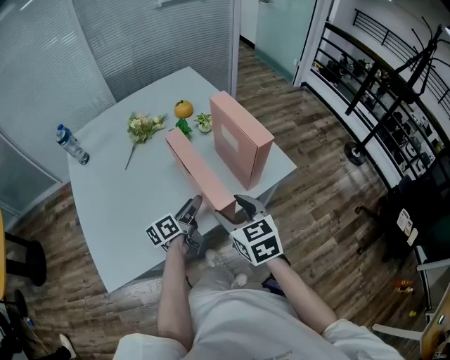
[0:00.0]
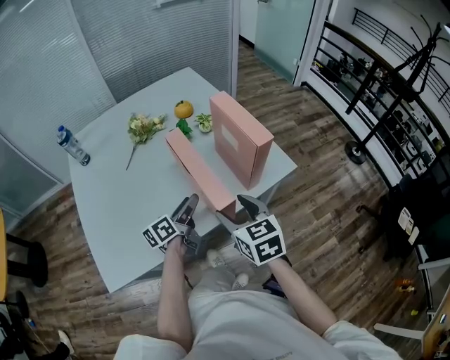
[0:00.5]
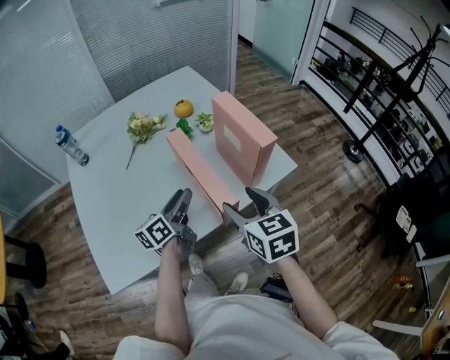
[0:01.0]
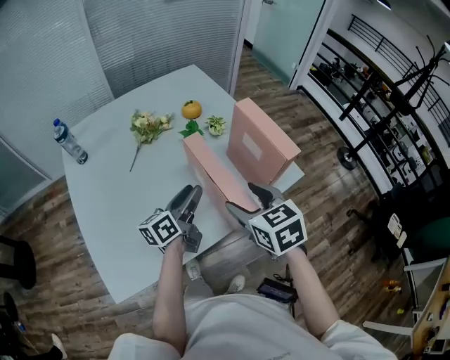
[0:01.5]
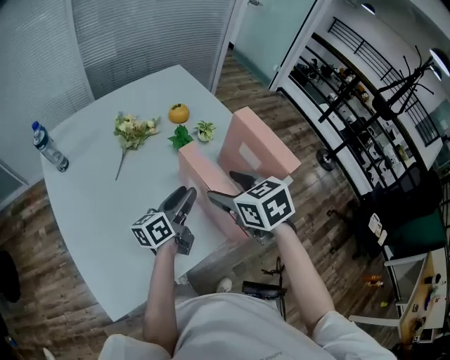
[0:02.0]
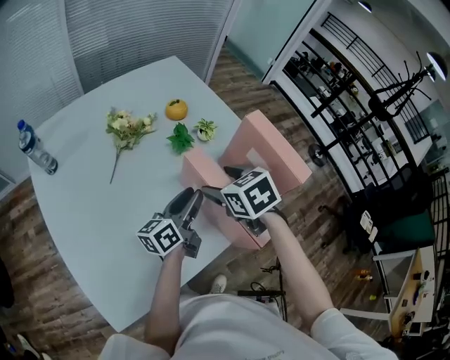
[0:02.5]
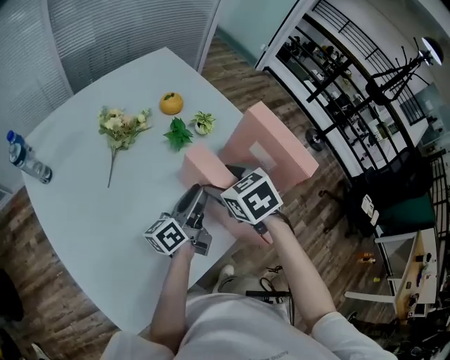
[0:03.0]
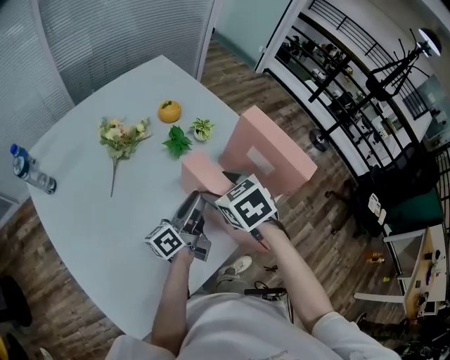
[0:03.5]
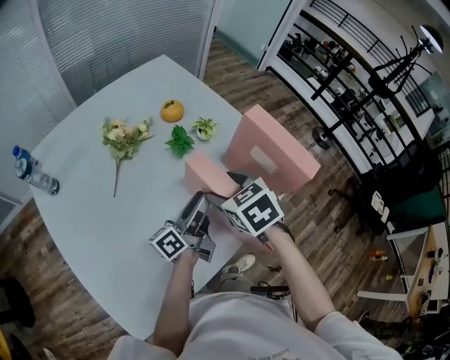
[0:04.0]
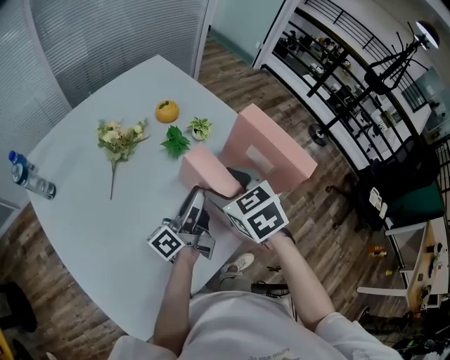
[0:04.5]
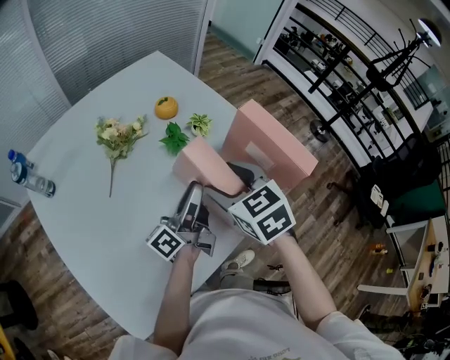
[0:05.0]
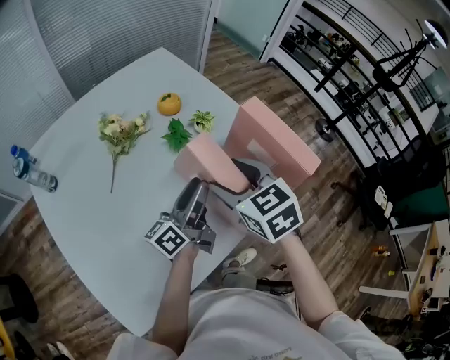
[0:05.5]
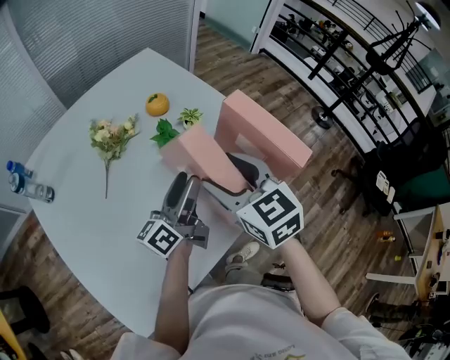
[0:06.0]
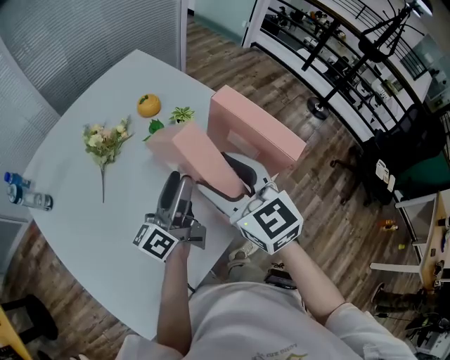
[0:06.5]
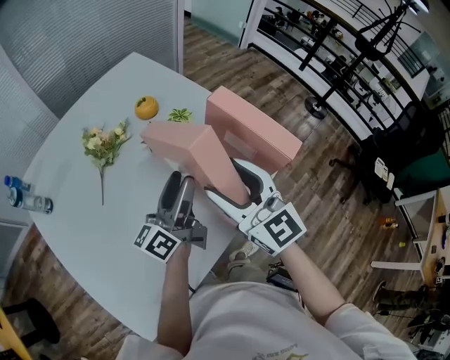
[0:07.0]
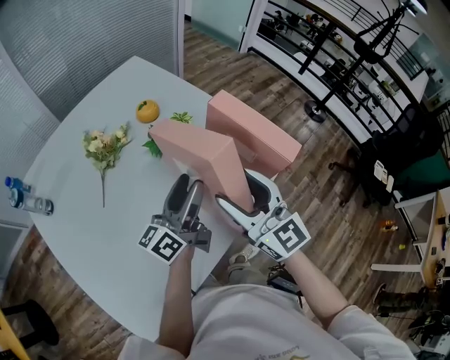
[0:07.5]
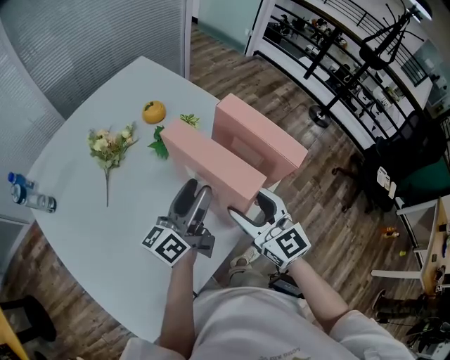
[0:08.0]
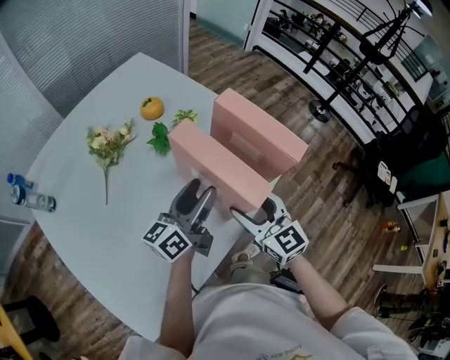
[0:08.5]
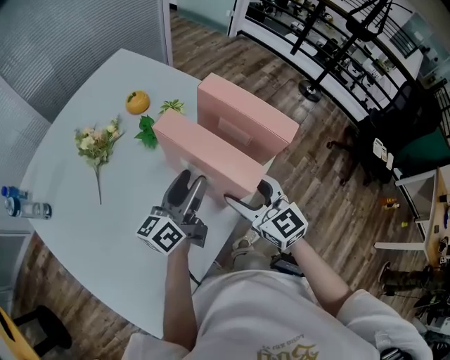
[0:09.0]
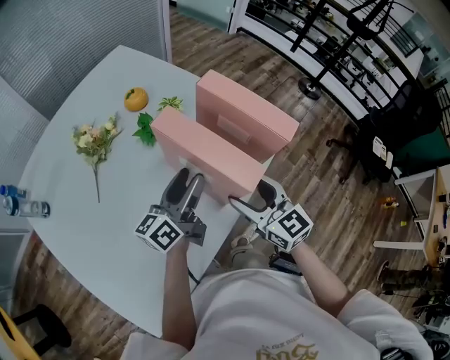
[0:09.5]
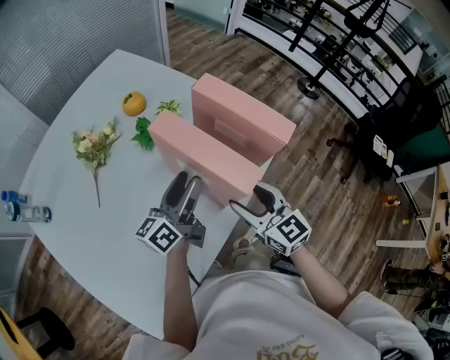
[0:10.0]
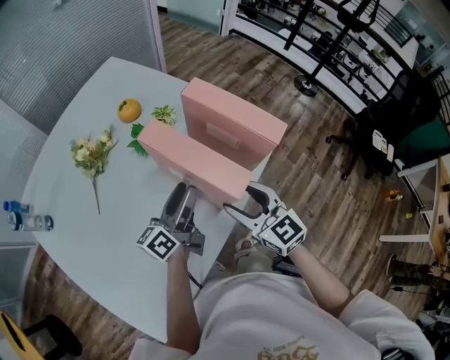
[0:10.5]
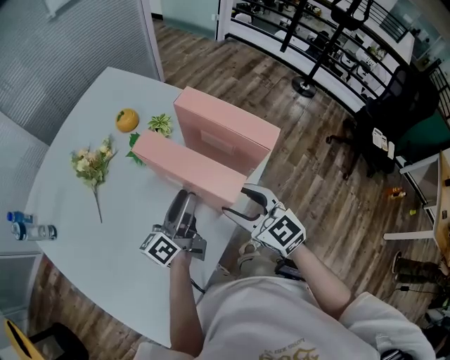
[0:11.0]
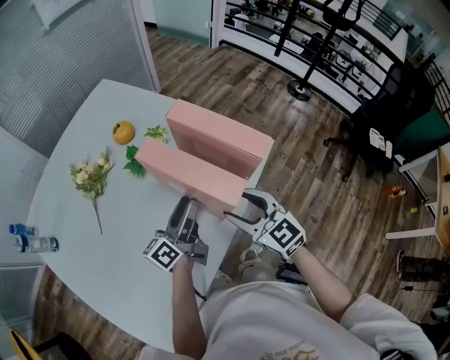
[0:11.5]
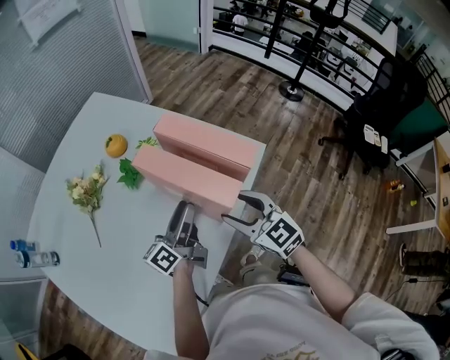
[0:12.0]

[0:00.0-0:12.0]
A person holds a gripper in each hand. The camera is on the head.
0:00.0 to 0:02.0: The right gripper goes about 15 cm forward and to the left. The left gripper goes about 10 cm forward, upward and to the left.
0:02.0 to 0:04.0: The right gripper goes some 10 cm forward and downward. Meanwhile the left gripper turns by about 20 degrees.
0:04.0 to 0:06.0: The right gripper heads upward, covering about 10 cm, and changes its angle by some 30 degrees, while the left gripper changes place by some 5 cm.
0:06.0 to 0:08.0: The right gripper heads to the right, backward and downward, covering some 10 cm.
0:08.0 to 0:10.0: The right gripper shifts approximately 5 cm downward.
0:10.0 to 0:12.0: The left gripper ends up roughly 5 cm from where it was.

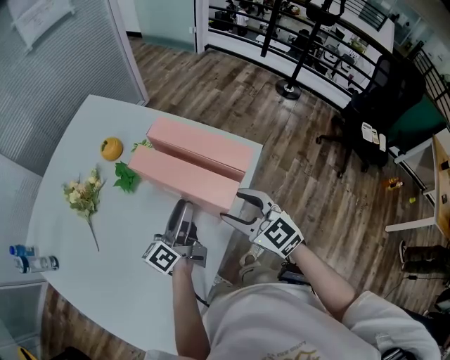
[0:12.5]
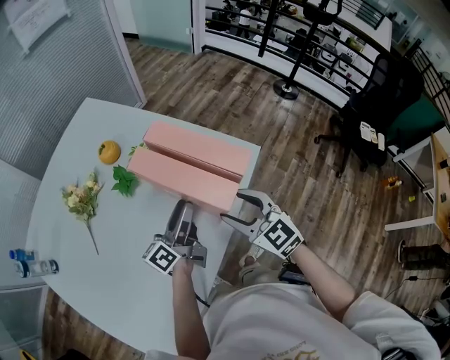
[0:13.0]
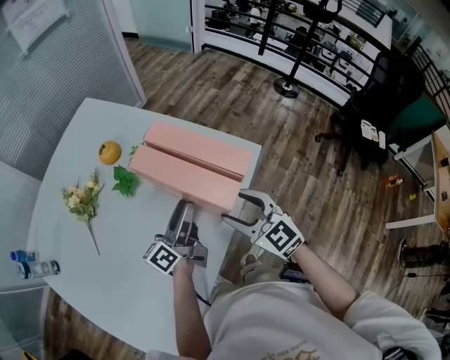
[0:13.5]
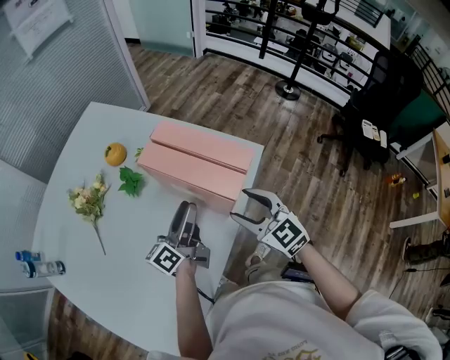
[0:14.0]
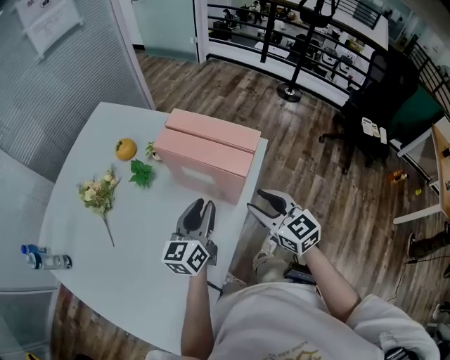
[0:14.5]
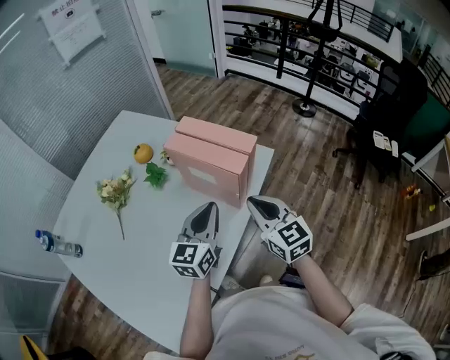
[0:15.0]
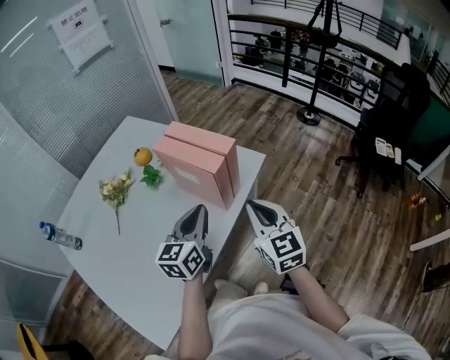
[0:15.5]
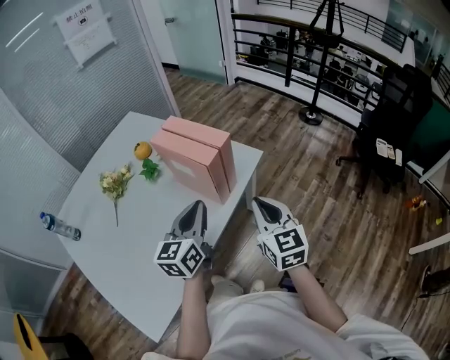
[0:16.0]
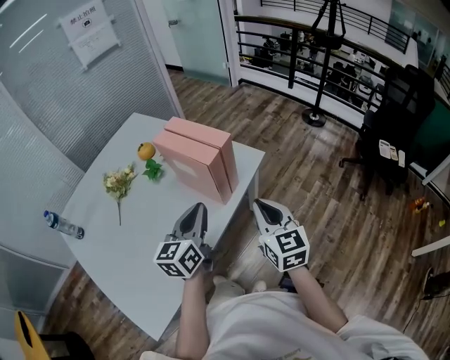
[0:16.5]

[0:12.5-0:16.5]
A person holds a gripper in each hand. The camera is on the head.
0:12.5 to 0:14.5: The right gripper ends up about 5 cm from where it was; the left gripper goes roughly 5 cm backward, and changes its angle by some 30 degrees.
0:14.5 to 0:16.5: The right gripper goes roughly 15 cm to the right, backward and upward, and closes its fingers. The left gripper shifts some 15 cm backward, upward and to the right, and closes its fingers.

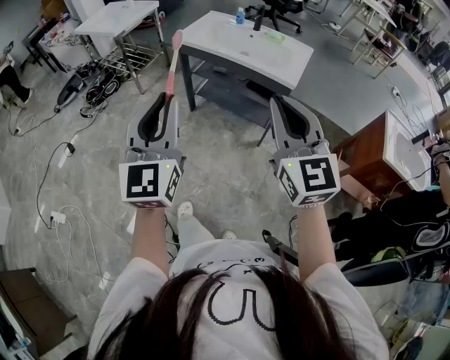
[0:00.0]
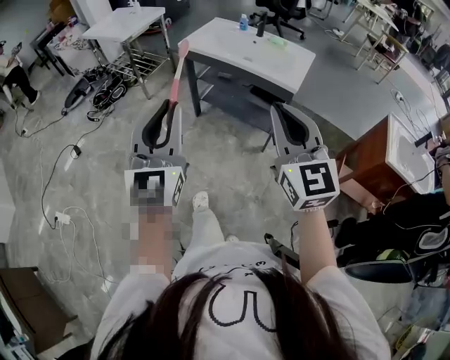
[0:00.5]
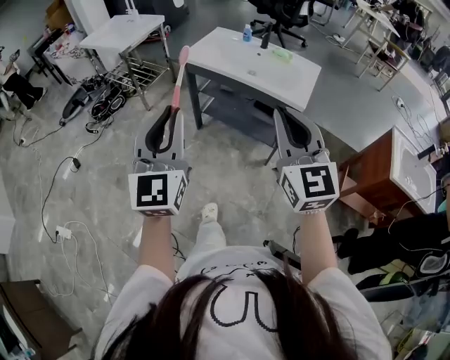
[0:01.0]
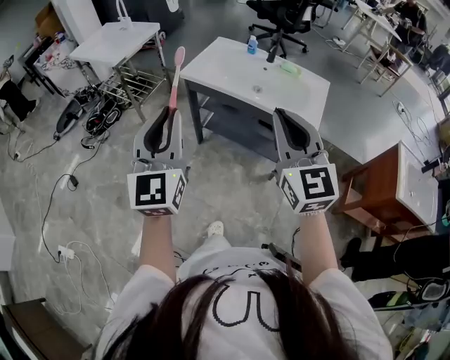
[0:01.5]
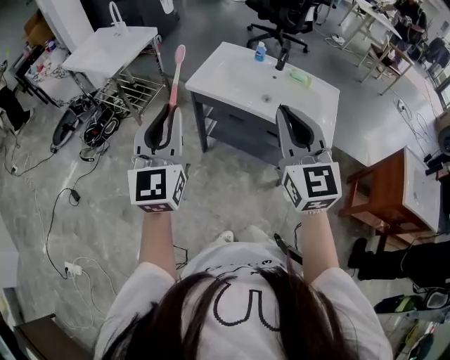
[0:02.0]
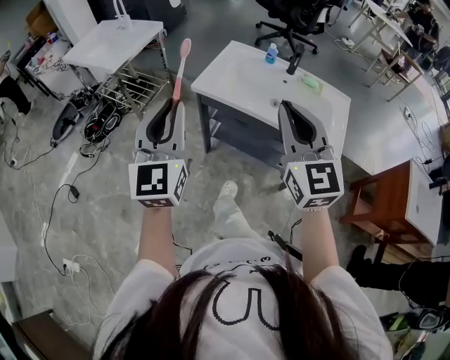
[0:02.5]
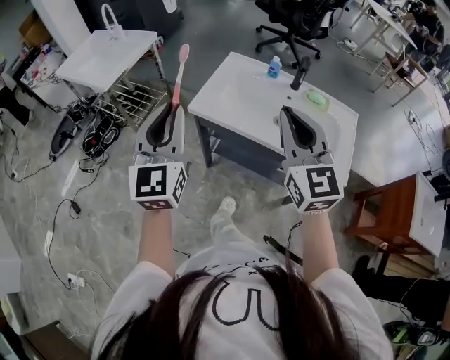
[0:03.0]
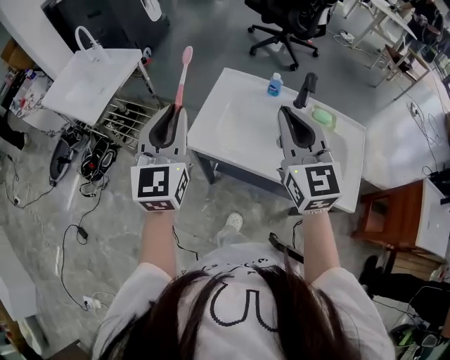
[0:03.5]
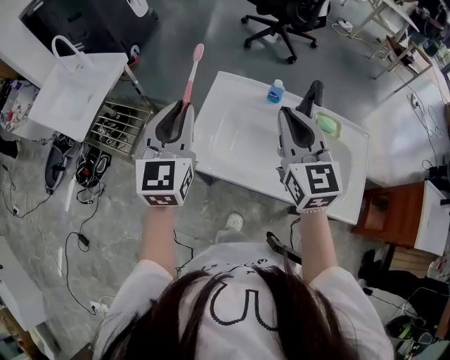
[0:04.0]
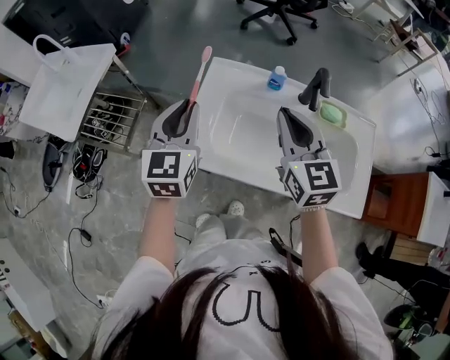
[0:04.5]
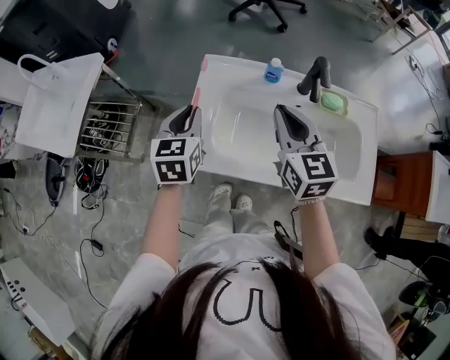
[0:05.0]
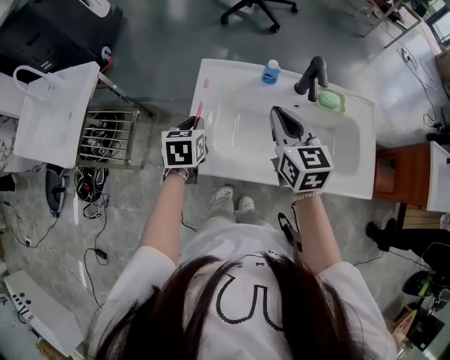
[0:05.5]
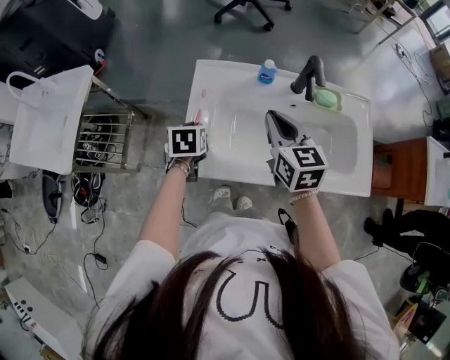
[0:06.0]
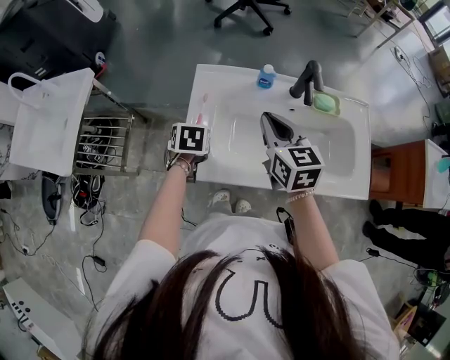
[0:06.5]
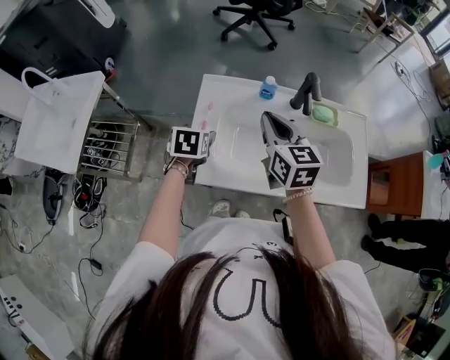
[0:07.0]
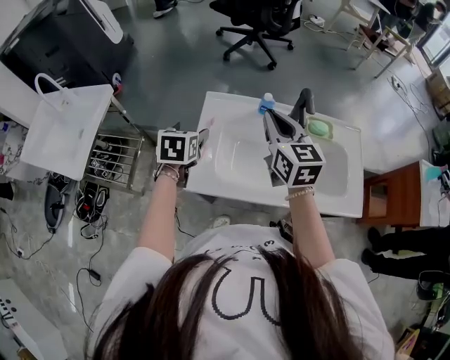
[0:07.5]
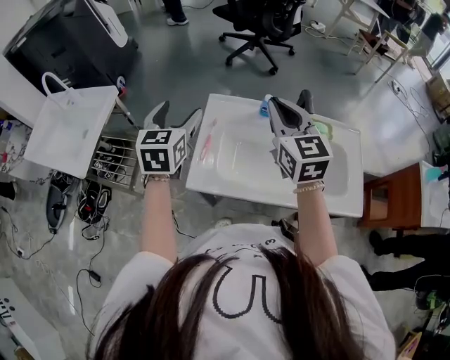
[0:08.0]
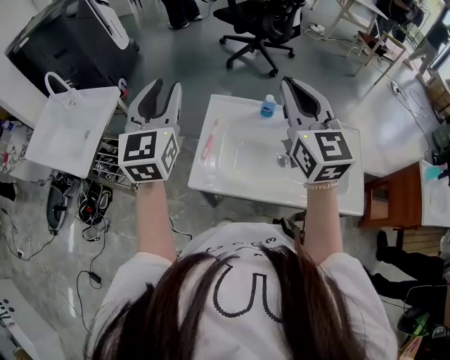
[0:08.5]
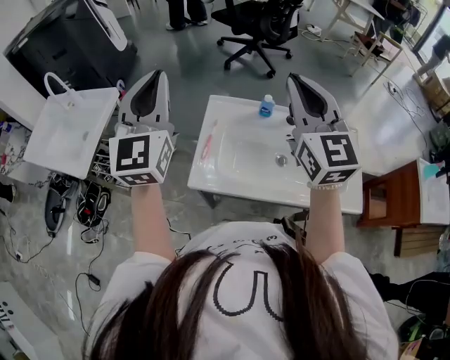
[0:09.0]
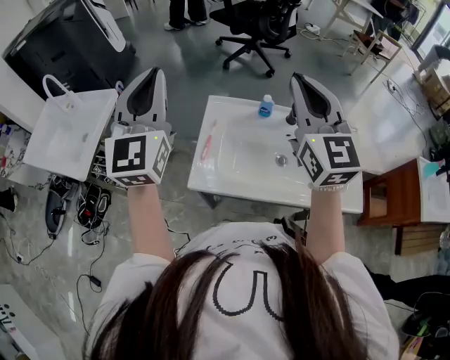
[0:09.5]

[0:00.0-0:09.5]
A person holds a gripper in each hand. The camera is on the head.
0:00.0 to 0:02.0: Both grippers travel together forward, some 30 cm.
0:02.0 to 0:04.0: Both grippers are carried forward, roughly 50 cm.
0:04.0 to 0:05.5: The left gripper heads downward, covering about 25 cm, and angles its fingers downward, by some 40 degrees; the right gripper is displaced downward and forward by roughly 15 cm, and turns by some 20 degrees.
0:05.5 to 0:07.5: The grippers both shift upward by about 5 cm. The left gripper opens.
0:07.5 to 0:09.5: The right gripper travels upward by approximately 20 cm, and turns by about 30 degrees; the left gripper is displaced upward by some 30 cm, tips its fingers upward by approximately 60 degrees, and closes up.

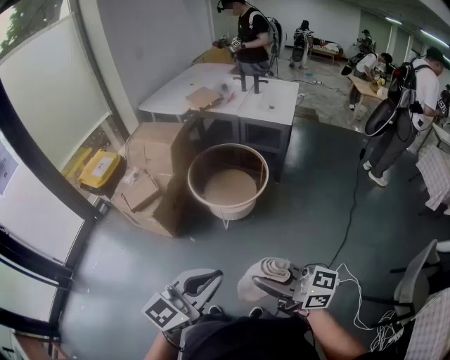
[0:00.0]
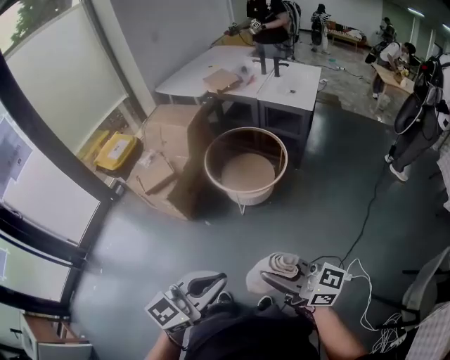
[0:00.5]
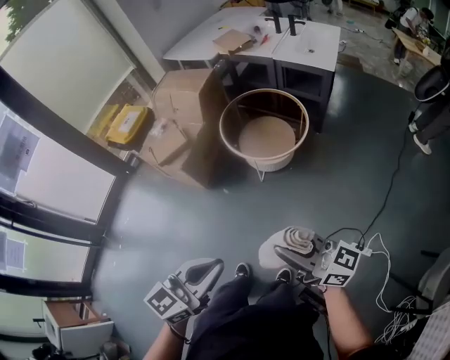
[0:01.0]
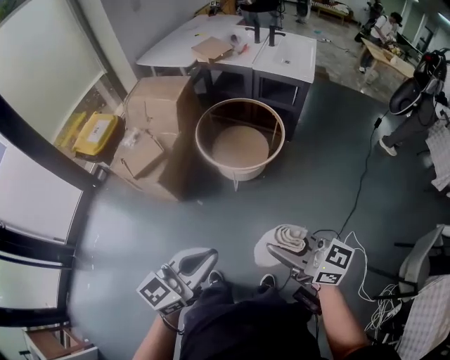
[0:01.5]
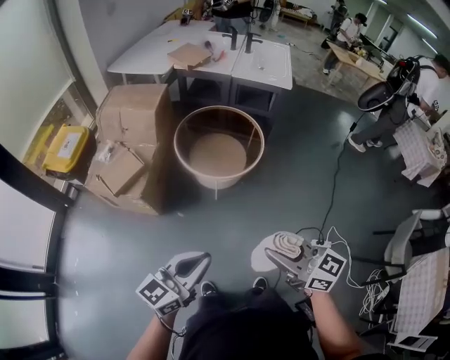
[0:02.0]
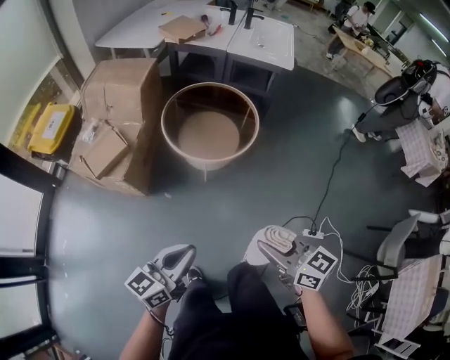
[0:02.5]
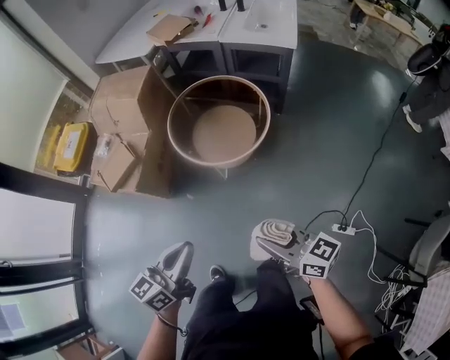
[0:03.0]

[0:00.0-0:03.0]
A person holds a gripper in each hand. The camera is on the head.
0:00.0 to 0:01.5: The right gripper goes some 10 cm forward and to the left. Meanwhile the left gripper moves to the left, forward and downward, roughly 15 cm.
0:01.5 to 0:03.0: The left gripper heads forward and downward, covering about 20 cm, and turns by roughly 20 degrees; the right gripper heads downward, forward and to the right, covering about 20 cm.
